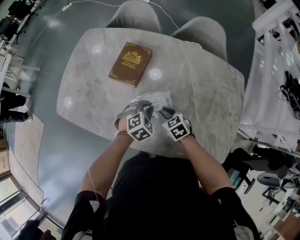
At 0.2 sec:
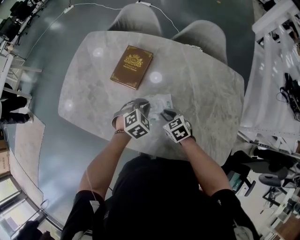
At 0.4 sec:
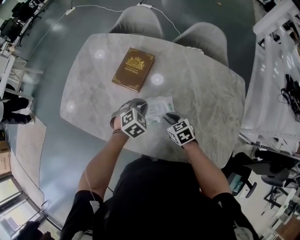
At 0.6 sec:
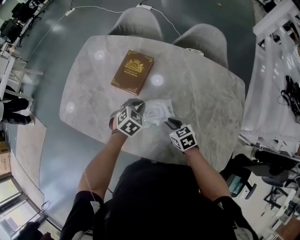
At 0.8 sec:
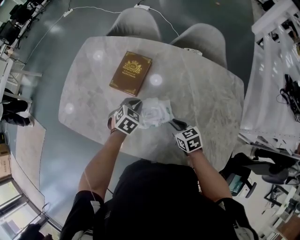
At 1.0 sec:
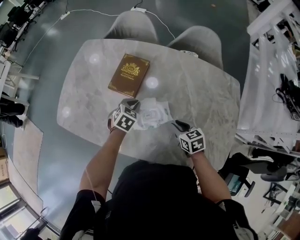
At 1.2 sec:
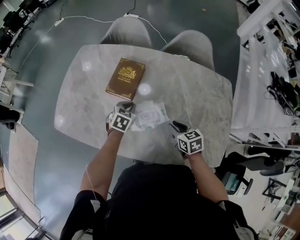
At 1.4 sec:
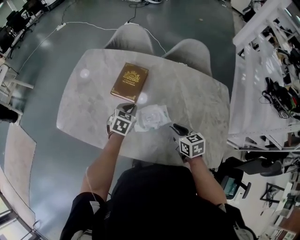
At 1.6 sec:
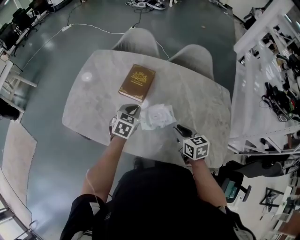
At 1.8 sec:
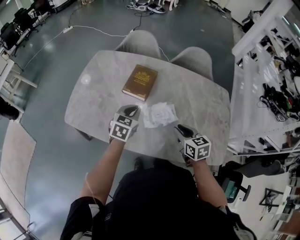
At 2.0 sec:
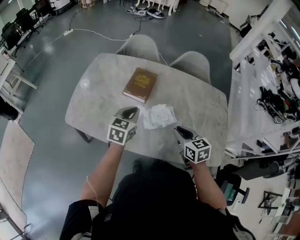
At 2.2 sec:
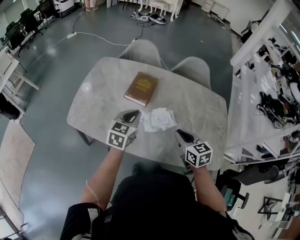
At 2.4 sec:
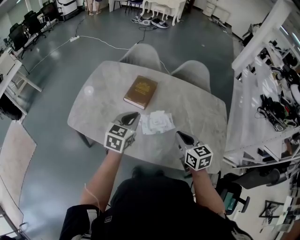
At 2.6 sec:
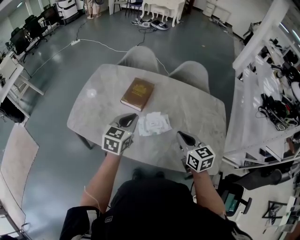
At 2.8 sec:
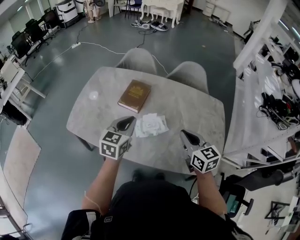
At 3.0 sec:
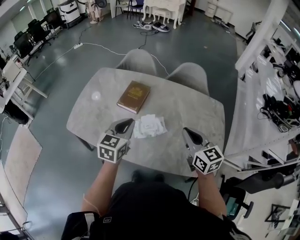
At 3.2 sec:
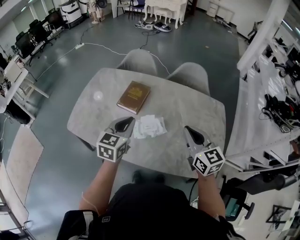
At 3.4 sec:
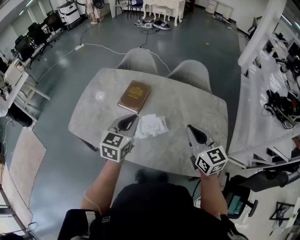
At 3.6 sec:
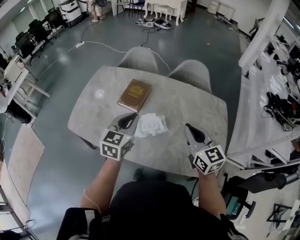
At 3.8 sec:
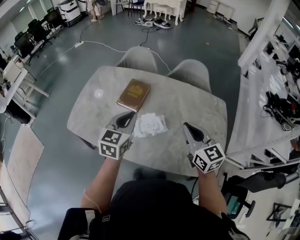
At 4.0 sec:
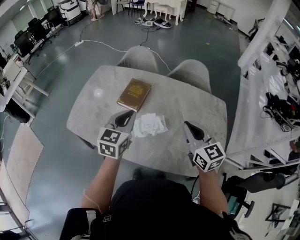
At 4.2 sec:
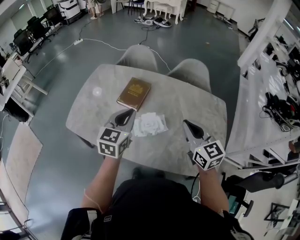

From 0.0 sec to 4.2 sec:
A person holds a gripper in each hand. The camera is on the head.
From 0.0 sec to 1.4 sec: The right gripper shifts about 10 cm upward, and swivels about 20 degrees. Meanwhile the left gripper moves to the left and forward, approximately 10 cm, and swivels about 30 degrees.
From 1.4 sec to 2.8 sec: The left gripper shifts some 20 cm upward and backward, and turns by about 20 degrees; the right gripper is displaced upward by approximately 15 cm, changes its angle by approximately 20 degrees, and closes its fingers.
From 2.8 sec to 4.2 sec: The right gripper changes place by roughly 5 cm.

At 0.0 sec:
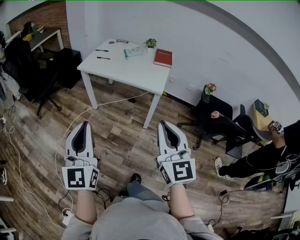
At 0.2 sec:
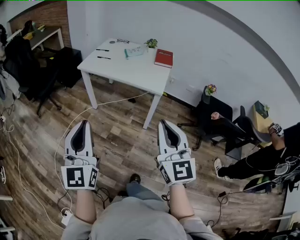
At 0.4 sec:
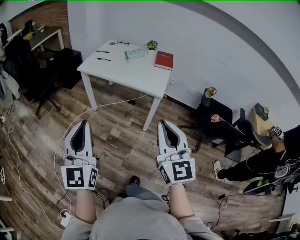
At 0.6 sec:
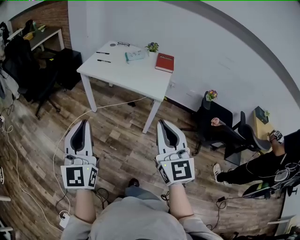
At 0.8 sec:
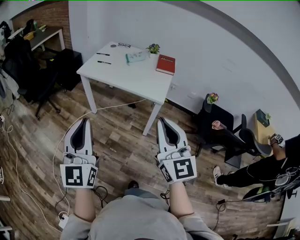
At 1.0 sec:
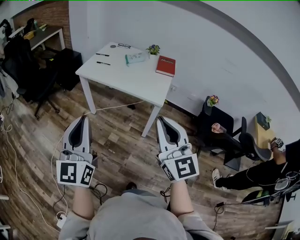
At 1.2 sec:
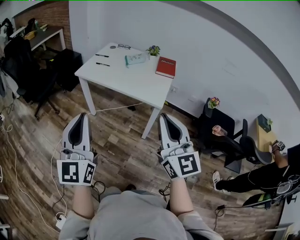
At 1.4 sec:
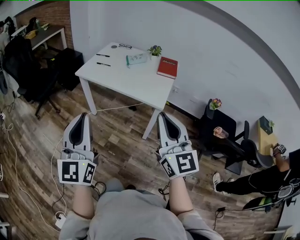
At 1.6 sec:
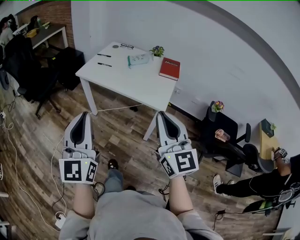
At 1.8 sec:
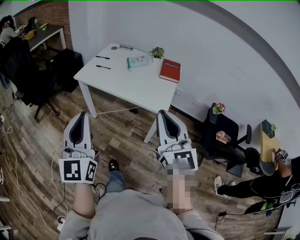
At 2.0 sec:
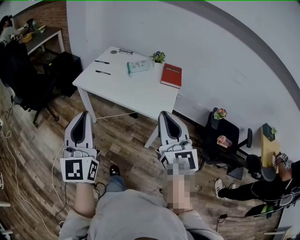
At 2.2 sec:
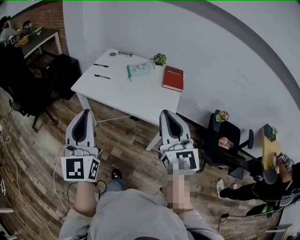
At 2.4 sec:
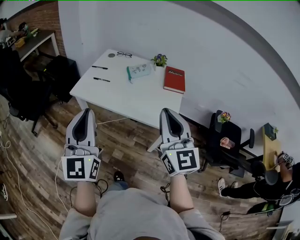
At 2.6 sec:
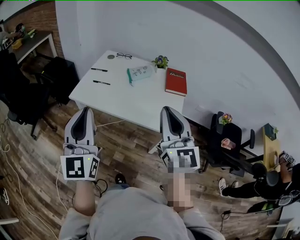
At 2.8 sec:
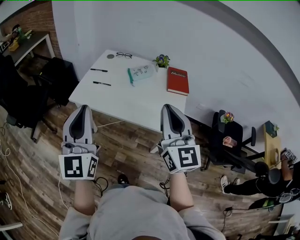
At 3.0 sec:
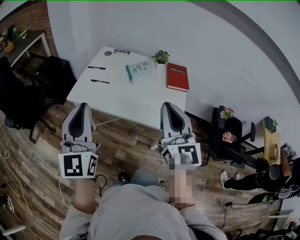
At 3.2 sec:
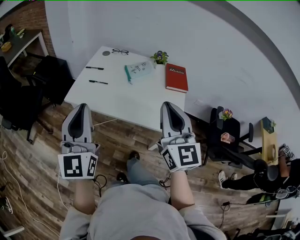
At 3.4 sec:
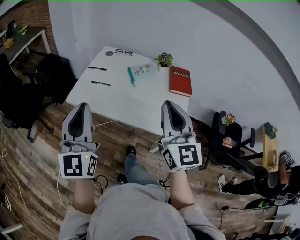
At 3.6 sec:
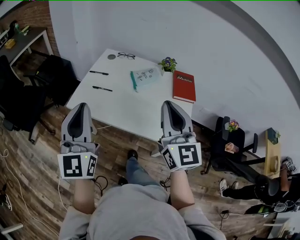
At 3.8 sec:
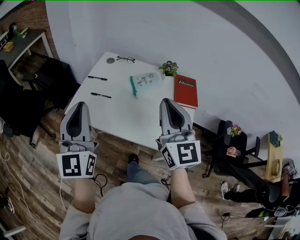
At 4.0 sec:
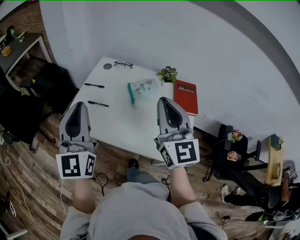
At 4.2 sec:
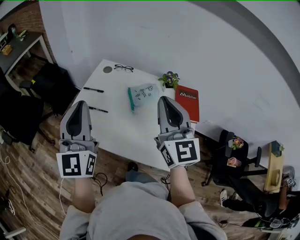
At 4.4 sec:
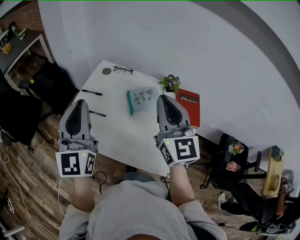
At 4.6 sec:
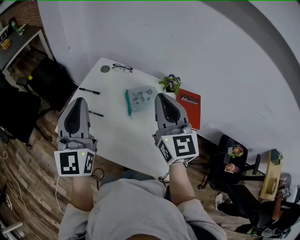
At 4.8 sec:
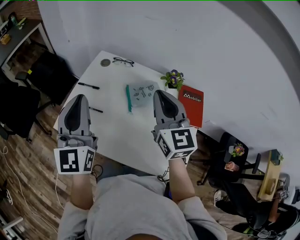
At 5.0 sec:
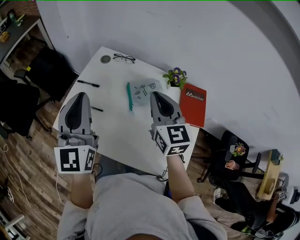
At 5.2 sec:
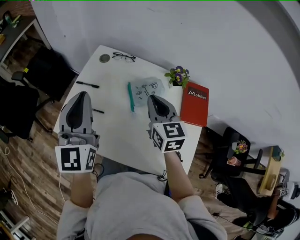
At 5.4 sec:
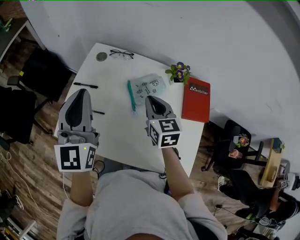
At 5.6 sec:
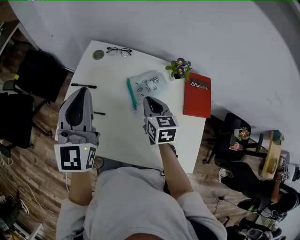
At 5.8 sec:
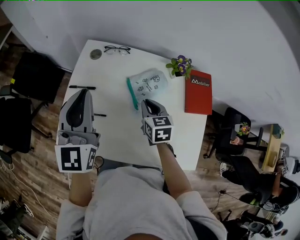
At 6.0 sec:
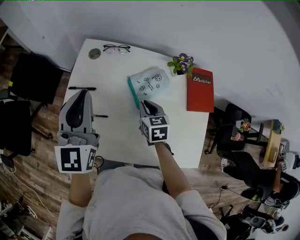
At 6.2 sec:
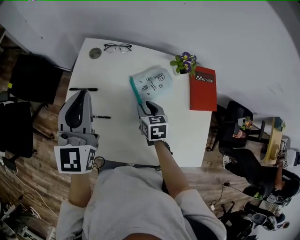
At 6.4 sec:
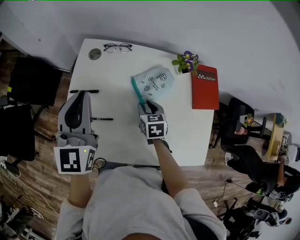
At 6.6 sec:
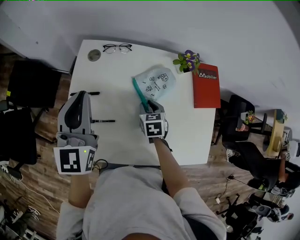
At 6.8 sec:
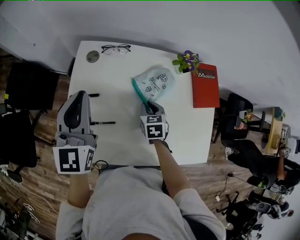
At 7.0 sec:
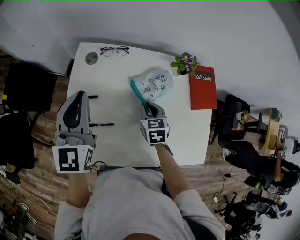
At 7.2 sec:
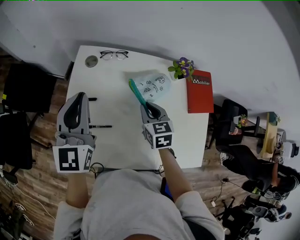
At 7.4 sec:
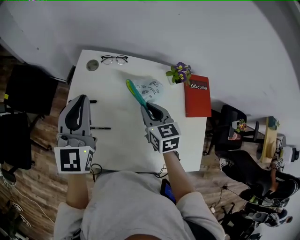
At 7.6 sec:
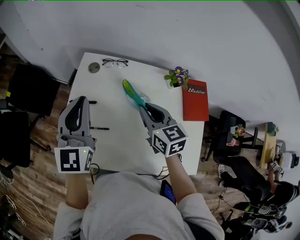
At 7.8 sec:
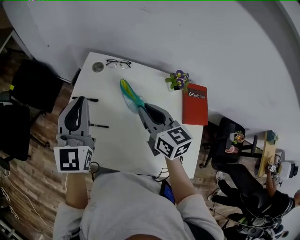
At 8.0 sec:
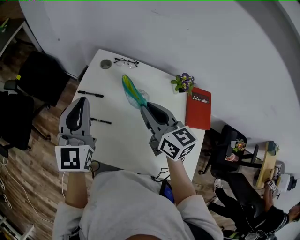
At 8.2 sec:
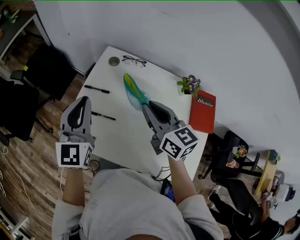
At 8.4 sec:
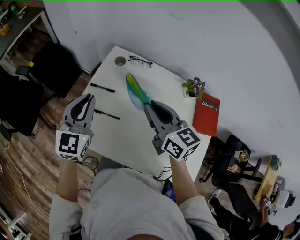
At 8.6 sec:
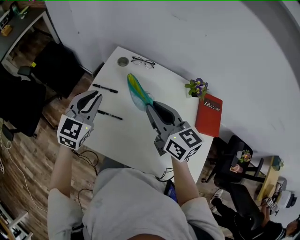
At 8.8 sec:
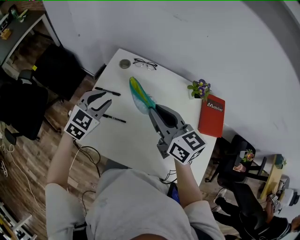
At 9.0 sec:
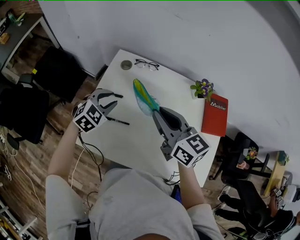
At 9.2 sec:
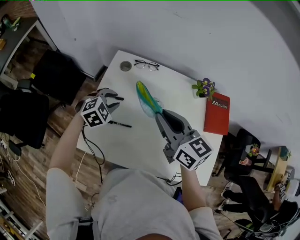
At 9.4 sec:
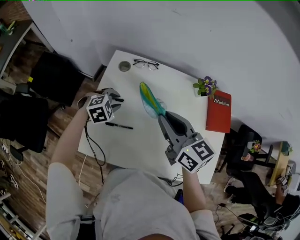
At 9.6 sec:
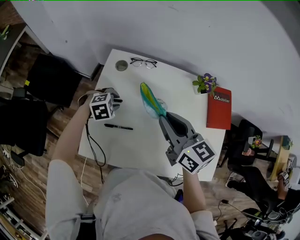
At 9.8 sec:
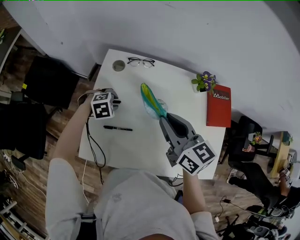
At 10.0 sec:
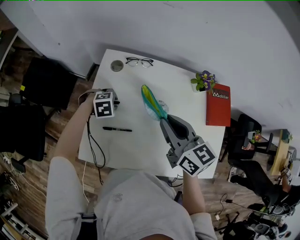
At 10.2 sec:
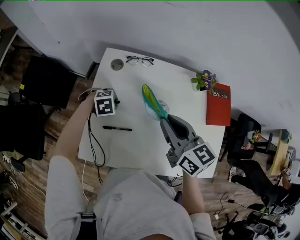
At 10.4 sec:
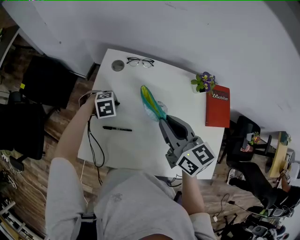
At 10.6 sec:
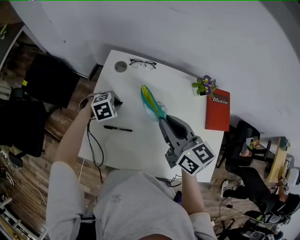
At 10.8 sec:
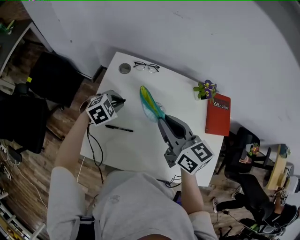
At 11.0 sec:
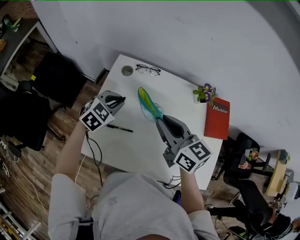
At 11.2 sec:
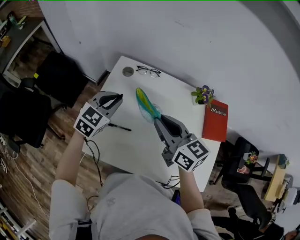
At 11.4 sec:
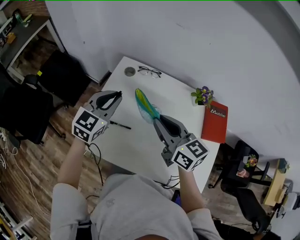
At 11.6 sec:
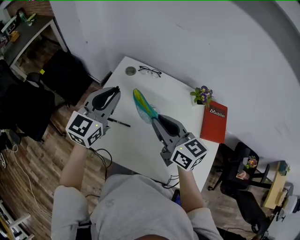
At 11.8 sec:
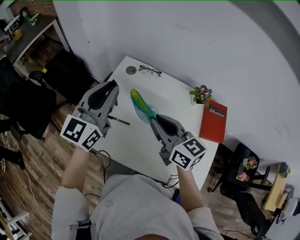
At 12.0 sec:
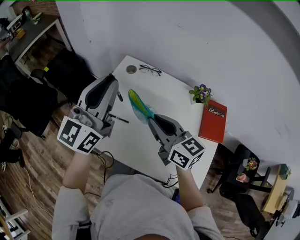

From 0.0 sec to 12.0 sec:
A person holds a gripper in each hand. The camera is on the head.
From 0.0 sec to 1.6 sec: Both grippers travel together forward, some 15 cm.
From 1.6 sec to 3.0 sec: Both grippers travel together forward, roughly 30 cm.
From 3.0 sec to 4.4 sec: The two grippers go approximately 30 cm forward.
From 4.4 sec to 6.0 sec: The left gripper is displaced forward and downward by some 20 cm, and turns by about 20 degrees; the right gripper moves downward and forward, roughly 35 cm, and tips its fingers downward by some 50 degrees.
From 6.0 sec to 7.6 sec: The right gripper moves upward, approximately 15 cm.
From 7.6 sec to 9.0 sec: The left gripper is displaced downward by some 15 cm, points its fingers some 40 degrees further downward, and opens its fingers, while the right gripper moves upward and to the left, roughly 10 cm, and changes its angle by about 20 degrees.
From 9.0 sec to 10.4 sec: The left gripper is displaced downward by some 15 cm, and points its fingers roughly 30 degrees further downward.
From 10.4 sec to 12.0 sec: The left gripper shifts about 40 cm upward, and angles its fingers upward, by some 90 degrees; the right gripper moves approximately 10 cm, and rotates approximately 20 degrees.

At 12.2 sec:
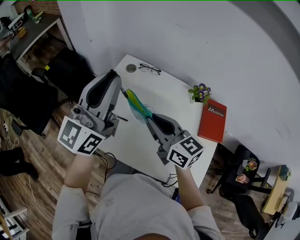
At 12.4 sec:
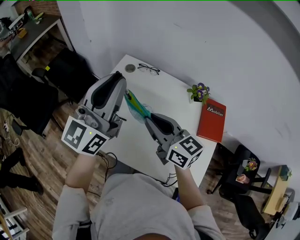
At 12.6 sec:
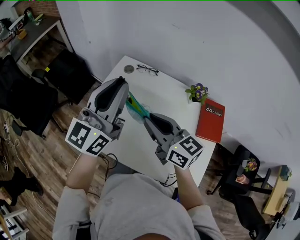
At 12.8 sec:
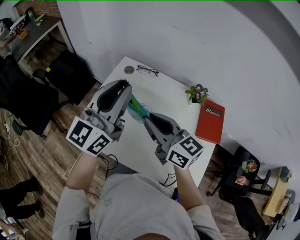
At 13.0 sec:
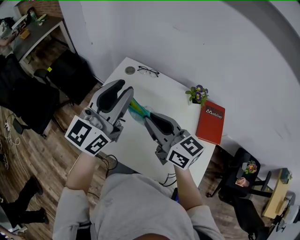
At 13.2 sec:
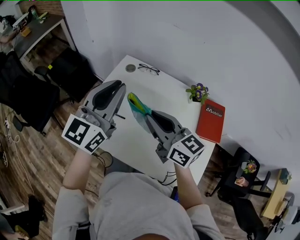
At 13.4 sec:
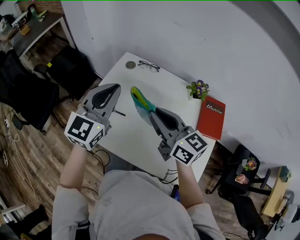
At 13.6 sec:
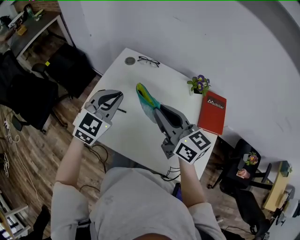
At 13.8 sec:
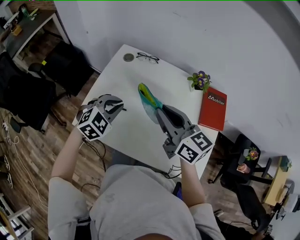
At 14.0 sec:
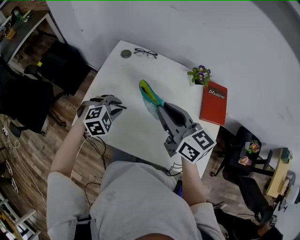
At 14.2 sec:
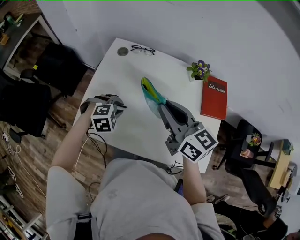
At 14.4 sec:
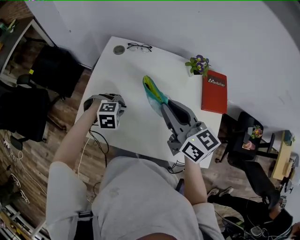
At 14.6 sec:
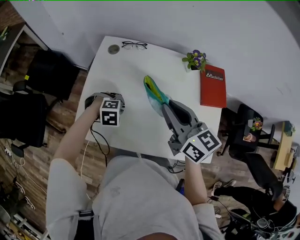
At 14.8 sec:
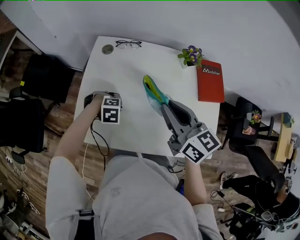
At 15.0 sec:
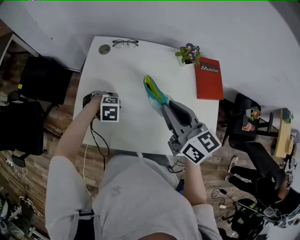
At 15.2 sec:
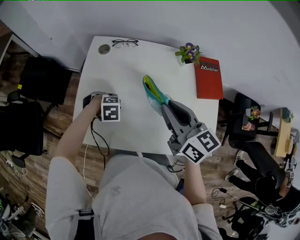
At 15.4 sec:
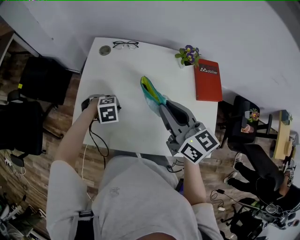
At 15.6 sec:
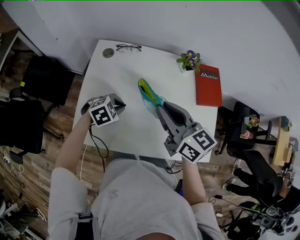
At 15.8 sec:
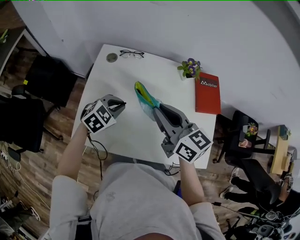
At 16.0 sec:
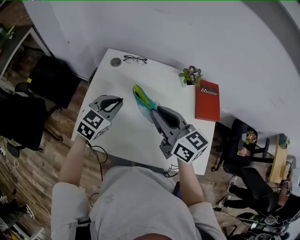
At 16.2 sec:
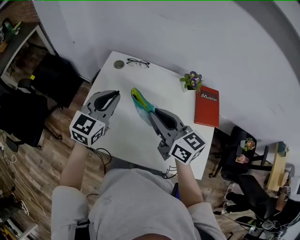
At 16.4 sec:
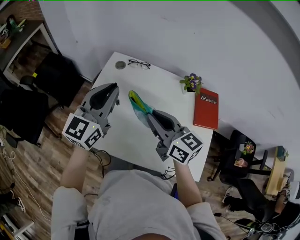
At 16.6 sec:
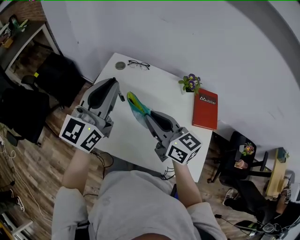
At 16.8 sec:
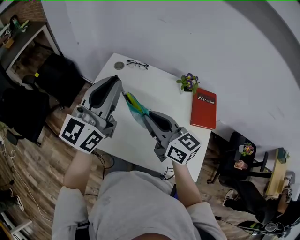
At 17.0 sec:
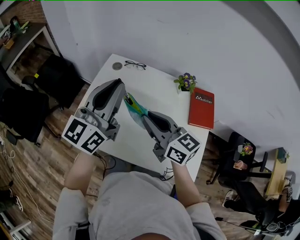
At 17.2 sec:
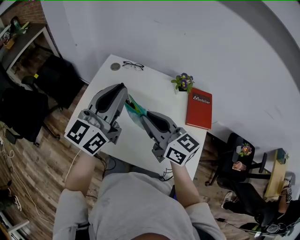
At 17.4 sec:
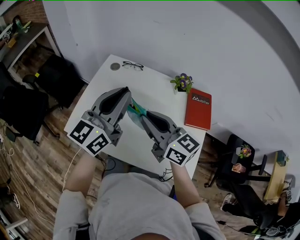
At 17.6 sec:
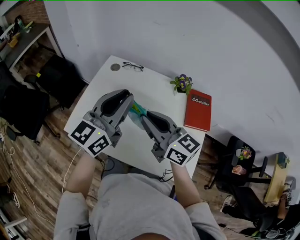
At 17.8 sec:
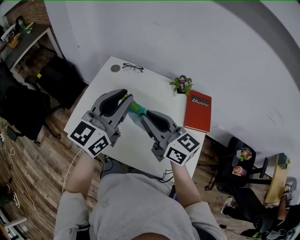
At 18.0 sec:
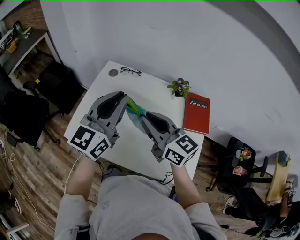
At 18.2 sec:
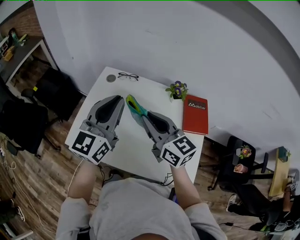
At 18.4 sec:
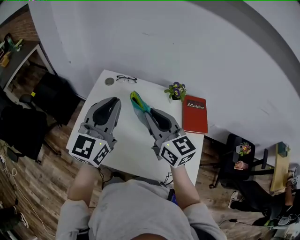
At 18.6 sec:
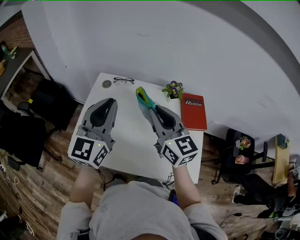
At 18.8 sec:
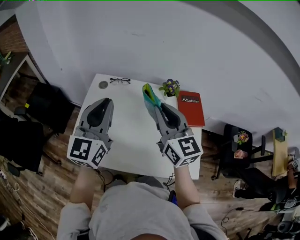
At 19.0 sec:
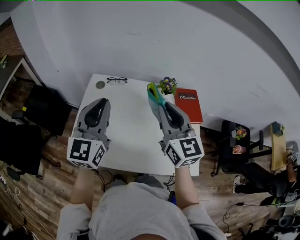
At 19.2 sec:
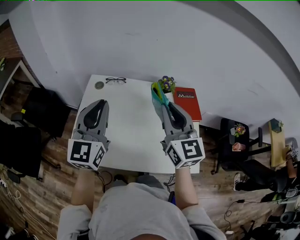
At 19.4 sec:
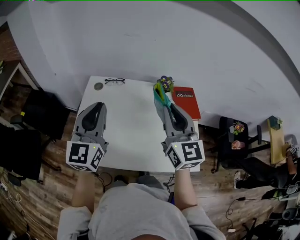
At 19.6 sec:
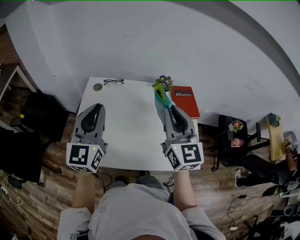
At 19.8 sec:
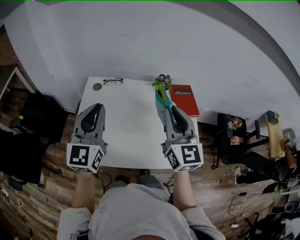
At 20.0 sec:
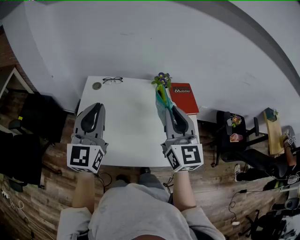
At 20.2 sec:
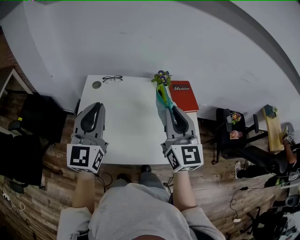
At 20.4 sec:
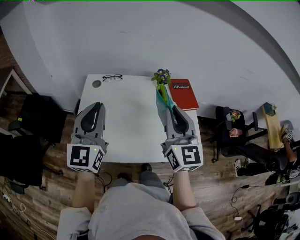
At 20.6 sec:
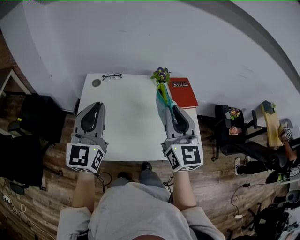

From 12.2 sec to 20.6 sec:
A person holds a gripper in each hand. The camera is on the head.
From 12.2 sec to 13.6 sec: The left gripper moves downward, approximately 15 cm, and points its fingers about 40 degrees further downward.
From 13.6 sec to 15.0 sec: The left gripper is displaced downward by approximately 25 cm, and tilts its fingers some 60 degrees downward. Meanwhile the right gripper rotates roughly 20 degrees.
From 15.0 sec to 16.4 sec: The right gripper ends up some 5 cm from where it was. Meanwhile the left gripper moves upward, about 35 cm, and angles its fingers upward, by about 80 degrees.
From 16.4 sec to 17.8 sec: The right gripper changes place by roughly 5 cm; the left gripper travels to the right and backward by approximately 10 cm.
From 17.8 sec to 19.2 sec: The left gripper moves to the left, some 10 cm. Meanwhile the right gripper travels upward and to the right by approximately 10 cm, and rotates about 50 degrees.
From 19.2 sec to 20.6 sec: The left gripper heads backward, covering about 5 cm; the right gripper moves backward, roughly 10 cm.
